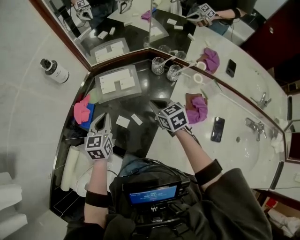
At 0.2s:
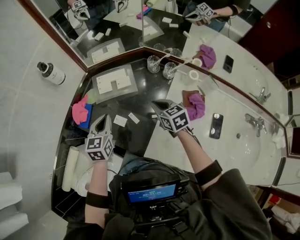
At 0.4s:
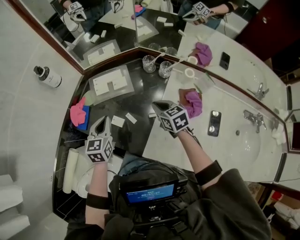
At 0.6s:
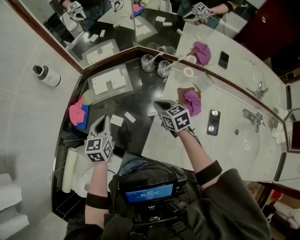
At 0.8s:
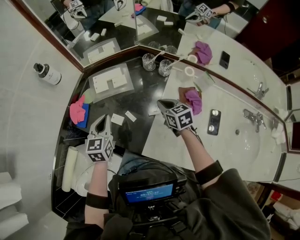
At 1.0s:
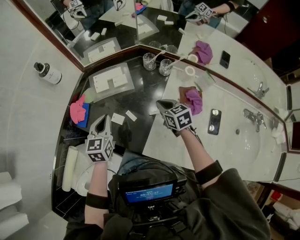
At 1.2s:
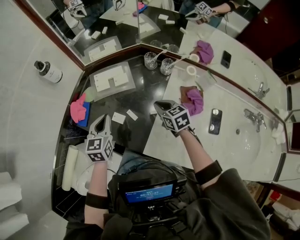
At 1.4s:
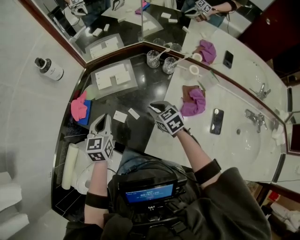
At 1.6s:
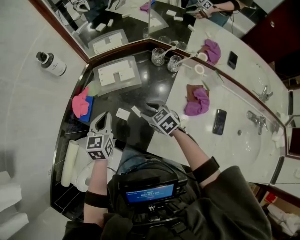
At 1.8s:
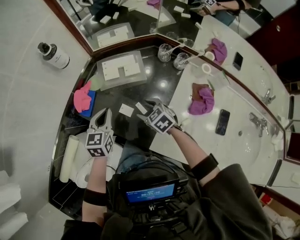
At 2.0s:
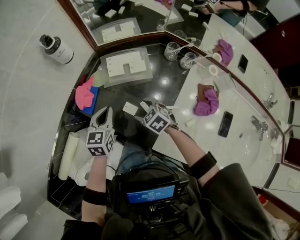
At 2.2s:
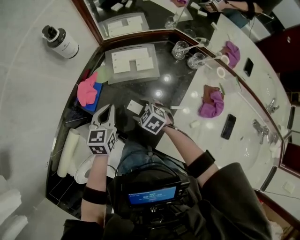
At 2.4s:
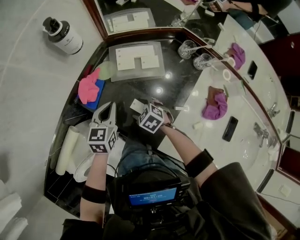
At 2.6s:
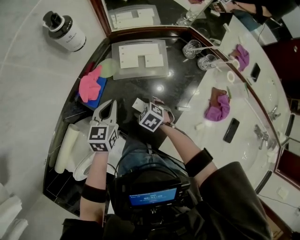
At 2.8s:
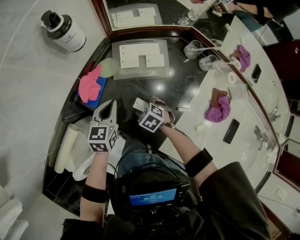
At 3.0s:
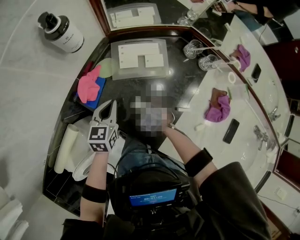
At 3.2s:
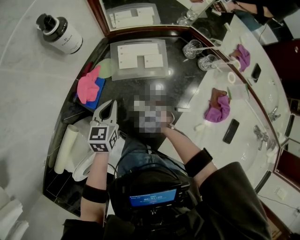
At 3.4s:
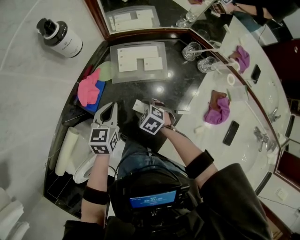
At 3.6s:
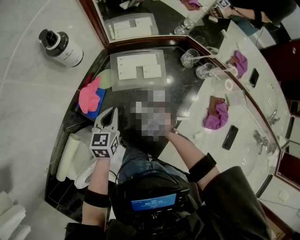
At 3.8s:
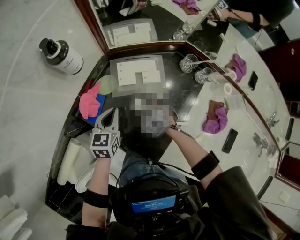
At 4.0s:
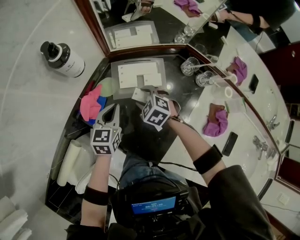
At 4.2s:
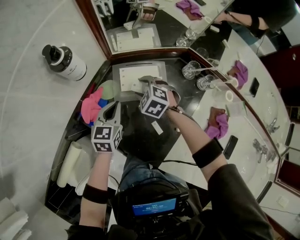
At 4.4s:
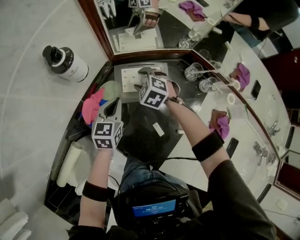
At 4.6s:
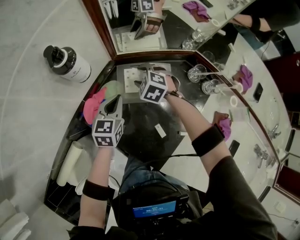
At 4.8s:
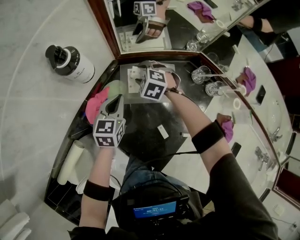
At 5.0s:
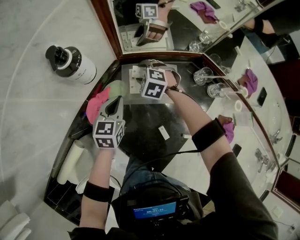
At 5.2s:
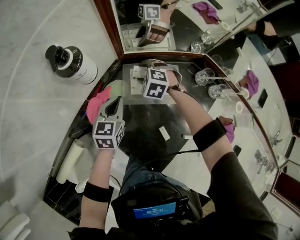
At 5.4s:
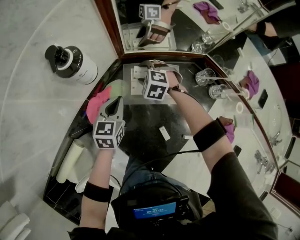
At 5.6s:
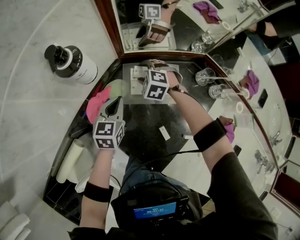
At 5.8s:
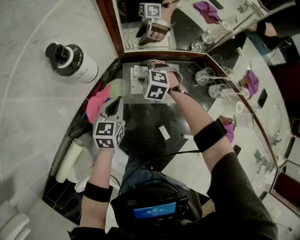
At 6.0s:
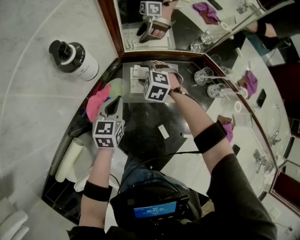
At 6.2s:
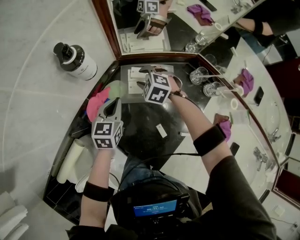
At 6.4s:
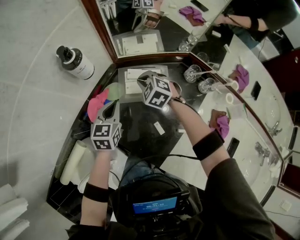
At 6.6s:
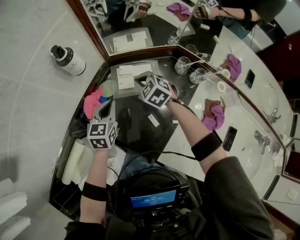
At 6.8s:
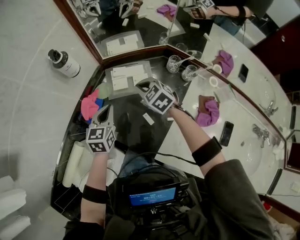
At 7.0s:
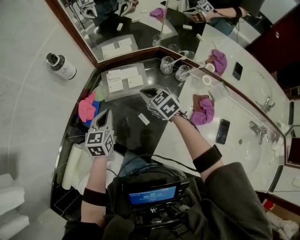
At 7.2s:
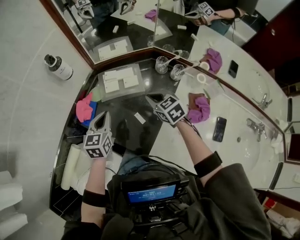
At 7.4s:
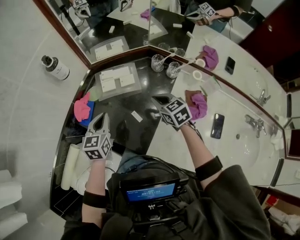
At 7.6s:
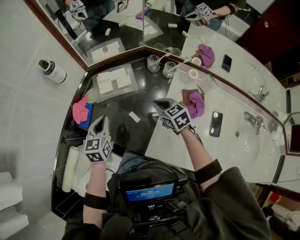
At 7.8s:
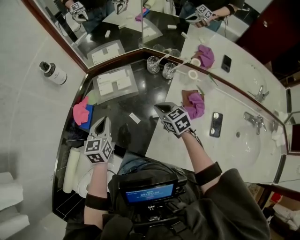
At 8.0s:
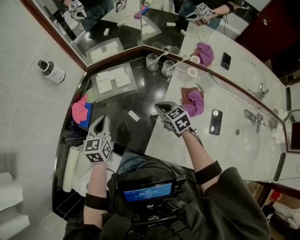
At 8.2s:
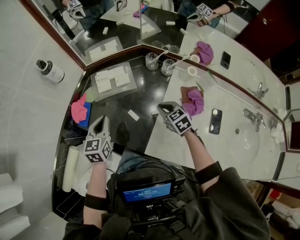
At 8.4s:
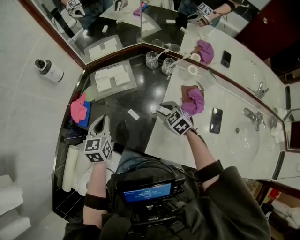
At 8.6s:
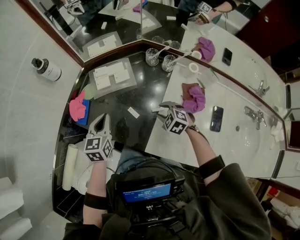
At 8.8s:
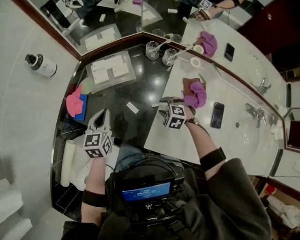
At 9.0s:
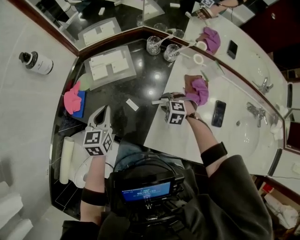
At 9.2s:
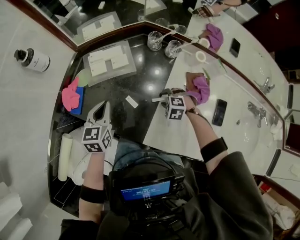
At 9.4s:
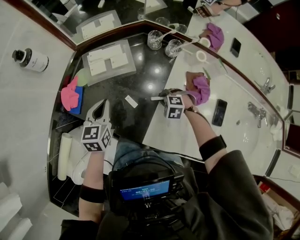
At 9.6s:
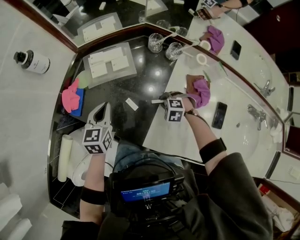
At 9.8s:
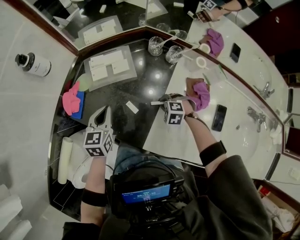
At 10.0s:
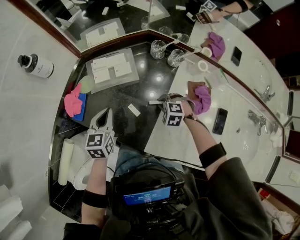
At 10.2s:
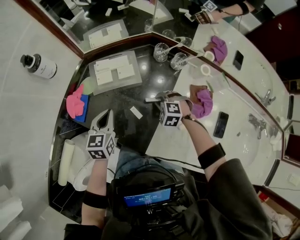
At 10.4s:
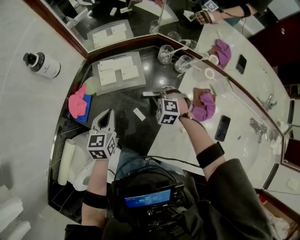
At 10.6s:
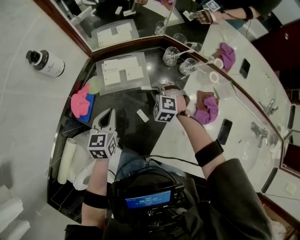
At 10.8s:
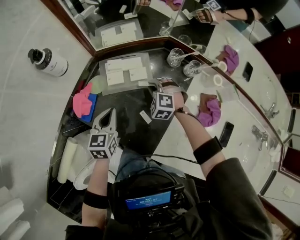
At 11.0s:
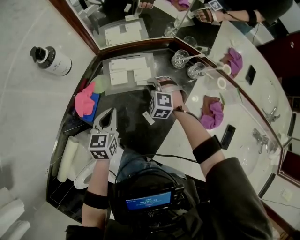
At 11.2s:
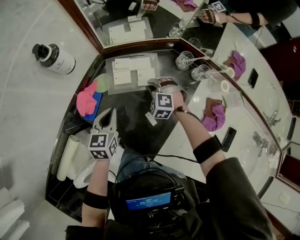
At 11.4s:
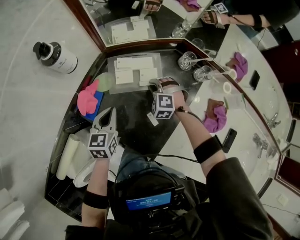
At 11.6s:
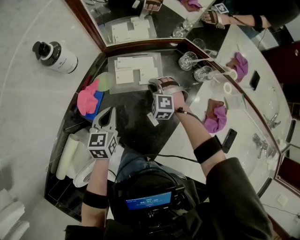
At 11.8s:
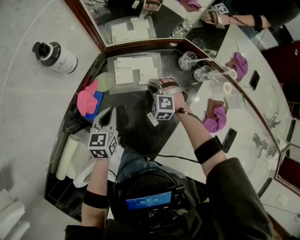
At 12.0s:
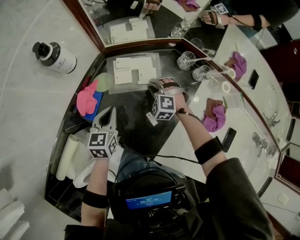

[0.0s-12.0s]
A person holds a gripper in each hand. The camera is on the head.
0.0s to 1.6s: The right gripper is displaced to the left, downward and backward by roughly 10 cm, and opens up.
1.6s to 3.0s: The left gripper shifts some 10 cm downward, forward and to the left. The right gripper shifts roughly 20 cm downward and to the left, and swivels roughly 30 degrees.
3.0s to 4.4s: The right gripper moves forward and upward, approximately 25 cm, and rotates roughly 20 degrees, while the left gripper goes approximately 10 cm forward.
4.4s to 6.0s: The right gripper changes place by approximately 5 cm.
6.0s to 7.6s: The left gripper goes some 20 cm backward and upward. The right gripper is displaced backward and to the right by roughly 35 cm, rolls clockwise, seen from behind, by some 60 degrees, and closes its fingers.
7.6s to 9.0s: The right gripper shifts approximately 15 cm downward and backward, angles its fingers downward, by approximately 30 degrees, and opens up.
9.0s to 10.4s: The right gripper shifts by roughly 15 cm.
10.4s to 12.0s: The left gripper goes some 5 cm to the left; the right gripper shifts roughly 15 cm forward and to the left.

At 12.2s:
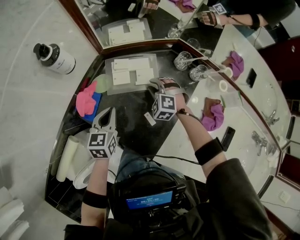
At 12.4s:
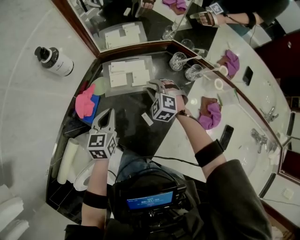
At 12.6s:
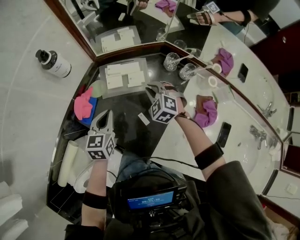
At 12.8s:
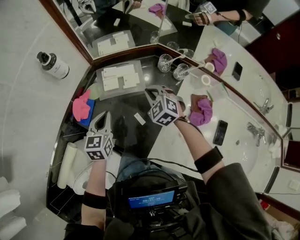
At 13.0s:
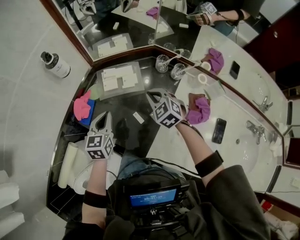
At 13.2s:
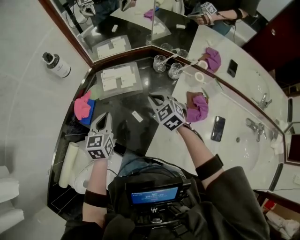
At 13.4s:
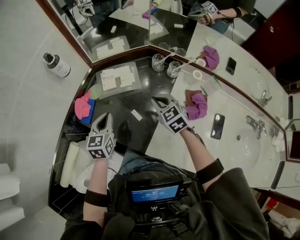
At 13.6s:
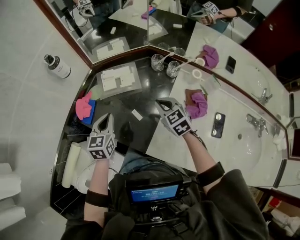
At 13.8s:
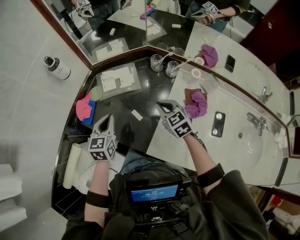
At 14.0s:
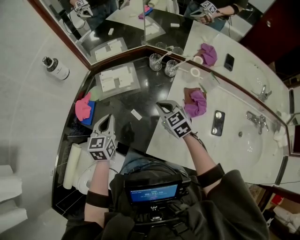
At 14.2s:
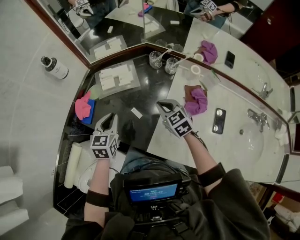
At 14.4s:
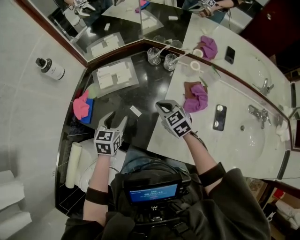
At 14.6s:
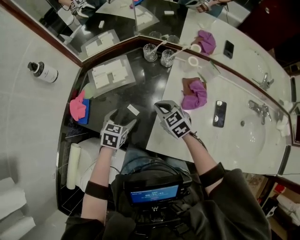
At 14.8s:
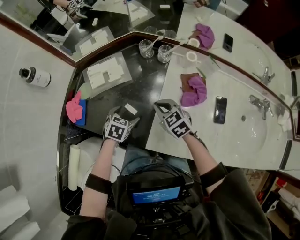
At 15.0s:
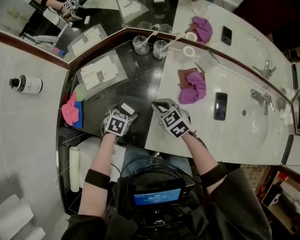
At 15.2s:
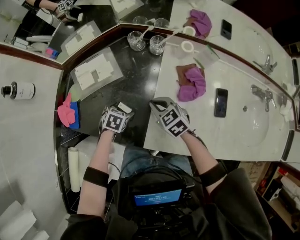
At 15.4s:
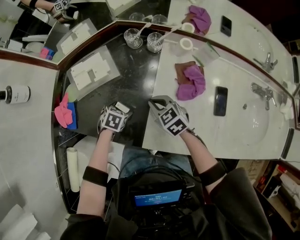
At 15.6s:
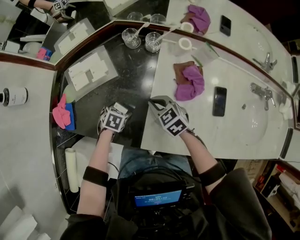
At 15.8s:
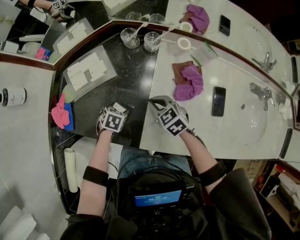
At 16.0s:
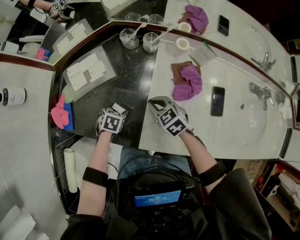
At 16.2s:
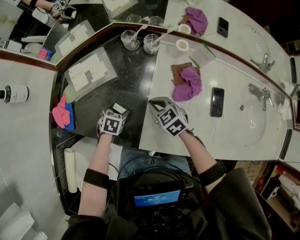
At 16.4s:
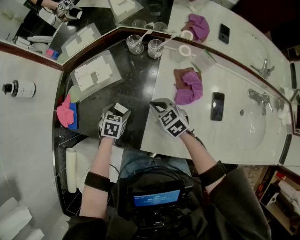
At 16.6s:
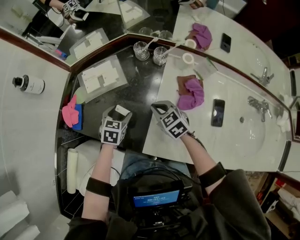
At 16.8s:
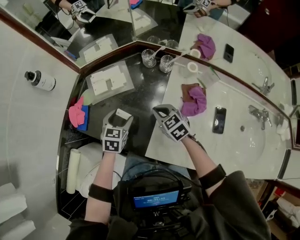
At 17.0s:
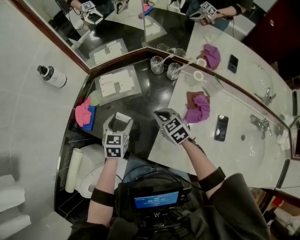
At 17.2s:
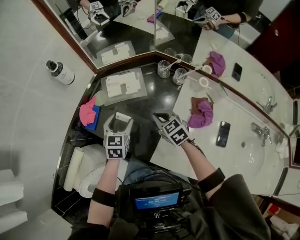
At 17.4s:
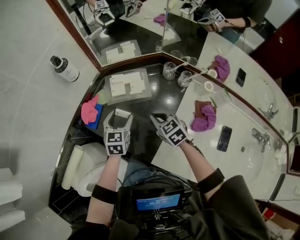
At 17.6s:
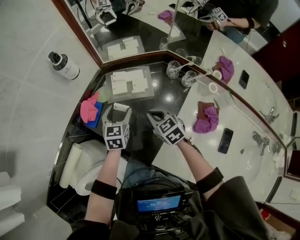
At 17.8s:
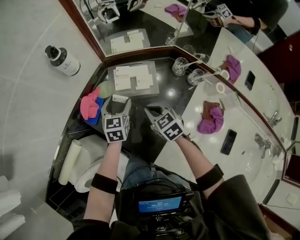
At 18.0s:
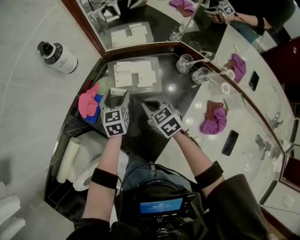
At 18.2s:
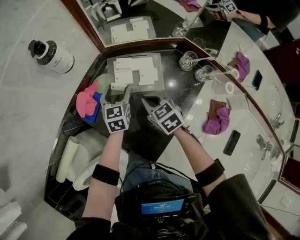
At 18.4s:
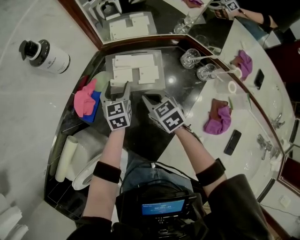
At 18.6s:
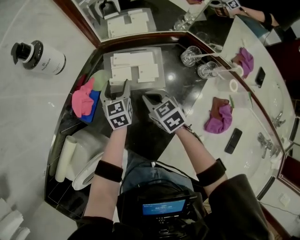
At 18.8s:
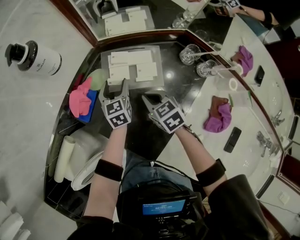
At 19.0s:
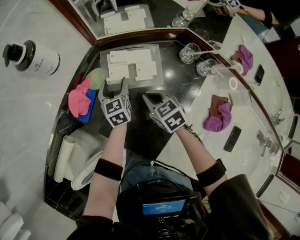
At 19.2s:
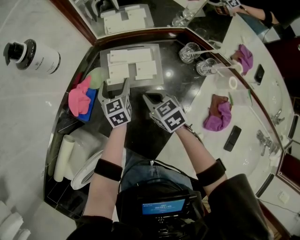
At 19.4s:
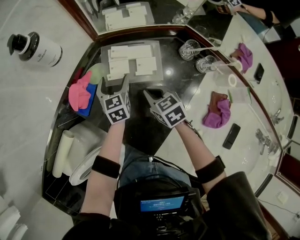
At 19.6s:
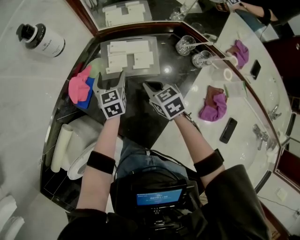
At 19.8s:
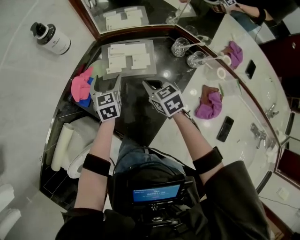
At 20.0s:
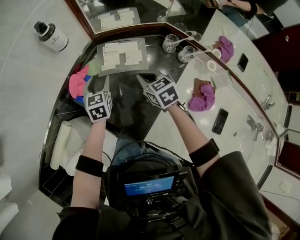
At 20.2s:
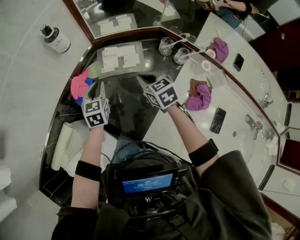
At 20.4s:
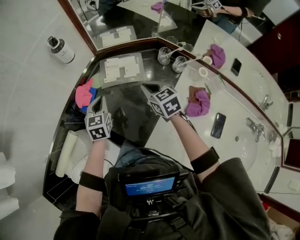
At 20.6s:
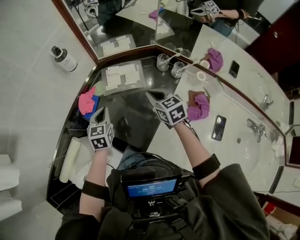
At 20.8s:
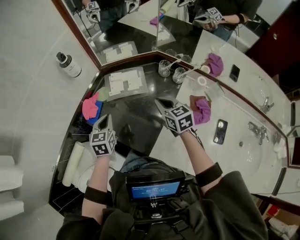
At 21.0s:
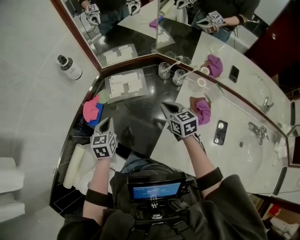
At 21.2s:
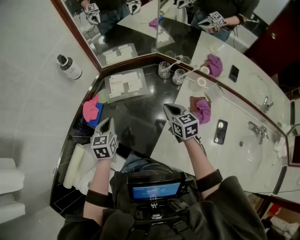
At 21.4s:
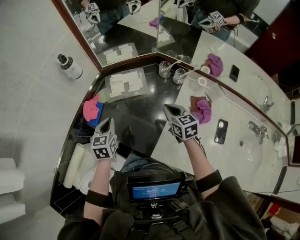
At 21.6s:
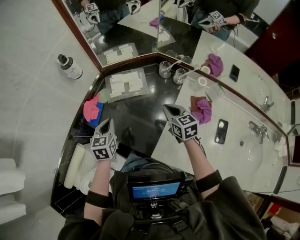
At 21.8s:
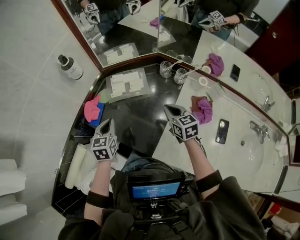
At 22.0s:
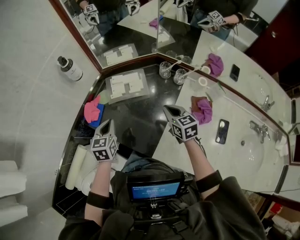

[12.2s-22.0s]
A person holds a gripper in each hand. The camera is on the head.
12.2s to 13.6s: The left gripper heads backward, upward and to the right, covering about 10 cm. Meanwhile the right gripper heads backward, upward and to the right, covering about 25 cm, and twists approximately 50 degrees clockwise, seen from behind.
13.6s to 15.0s: The left gripper heads downward and to the right, covering some 20 cm, tilts its fingers roughly 40 degrees downward, and opens its fingers. The right gripper goes some 10 cm downward.
15.0s to 16.4s: The grippers move only a little.
16.4s to 17.8s: The right gripper moves roughly 20 cm, while the left gripper shifts by some 20 cm, and changes its angle by about 50 degrees.
17.8s to 19.2s: The left gripper travels downward and forward by roughly 10 cm. The right gripper goes roughly 5 cm downward.
19.2s to 20.6s: The left gripper heads upward and backward, covering about 20 cm, and closes, while the right gripper heads upward, backward and to the right, covering roughly 20 cm.
20.6s to 22.0s: The right gripper travels to the right by roughly 5 cm.

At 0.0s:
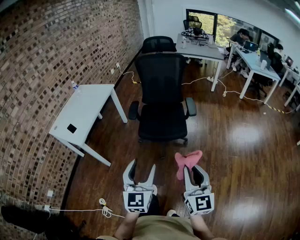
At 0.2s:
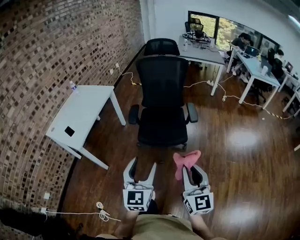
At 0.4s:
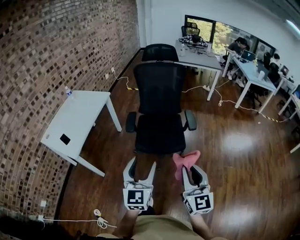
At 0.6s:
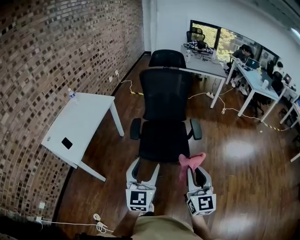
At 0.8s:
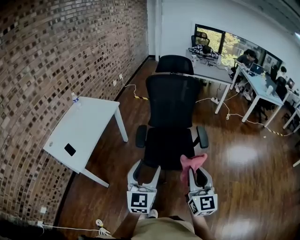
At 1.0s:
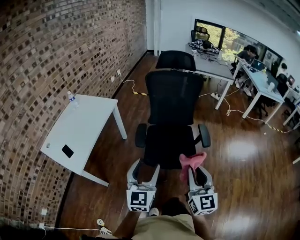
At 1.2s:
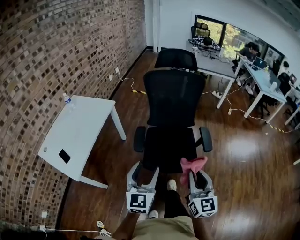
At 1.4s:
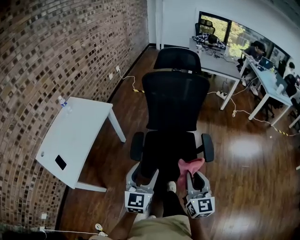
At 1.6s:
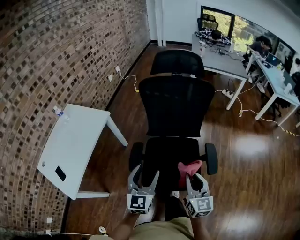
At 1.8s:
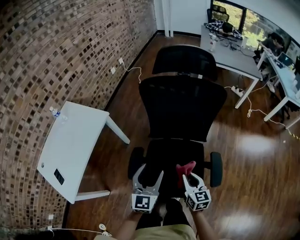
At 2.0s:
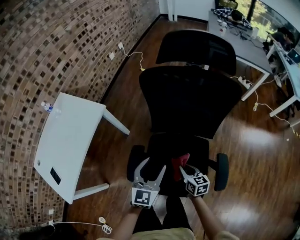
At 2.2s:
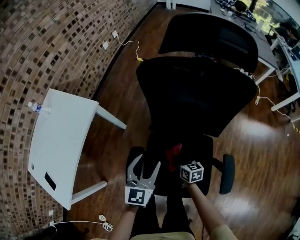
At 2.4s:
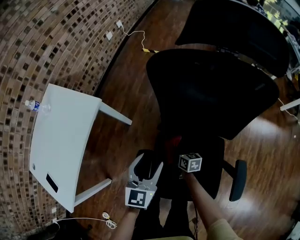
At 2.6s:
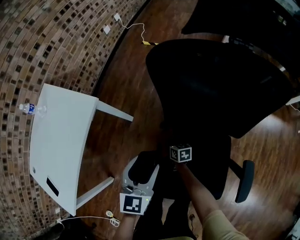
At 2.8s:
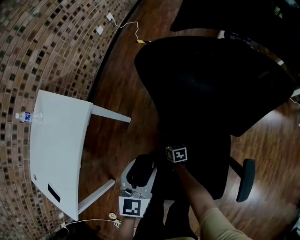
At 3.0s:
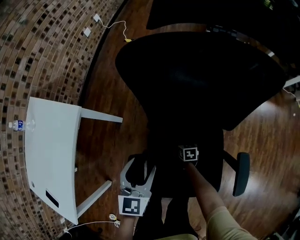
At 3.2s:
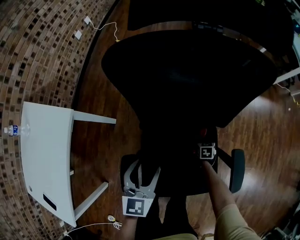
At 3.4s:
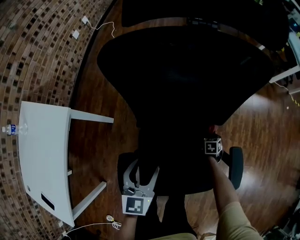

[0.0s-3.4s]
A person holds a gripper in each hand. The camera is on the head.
0.0s to 1.6s: The pair of grippers is taken forward, approximately 50 cm.
1.6s to 3.4s: The left gripper changes place by some 35 cm, and changes its angle by about 20 degrees. Meanwhile the right gripper moves downward, approximately 50 cm, and angles its fingers downward, by about 60 degrees.
